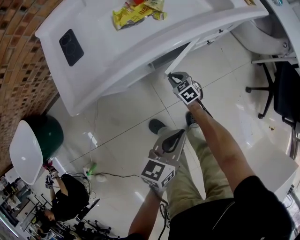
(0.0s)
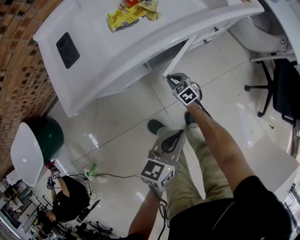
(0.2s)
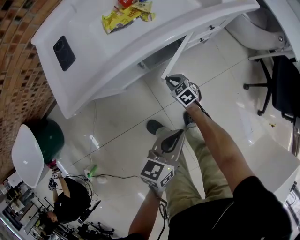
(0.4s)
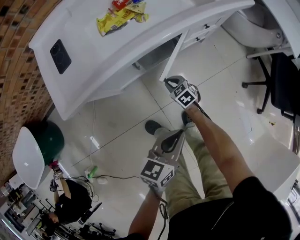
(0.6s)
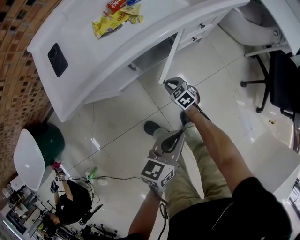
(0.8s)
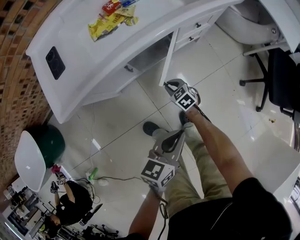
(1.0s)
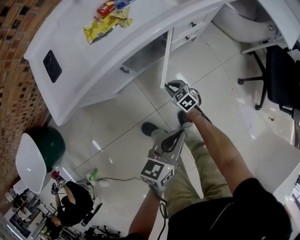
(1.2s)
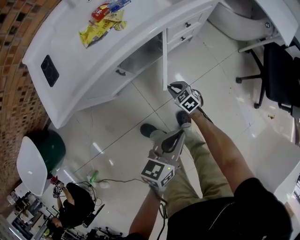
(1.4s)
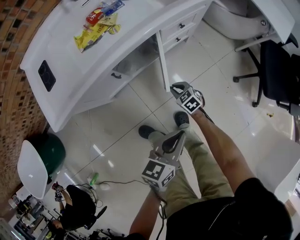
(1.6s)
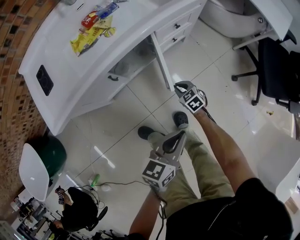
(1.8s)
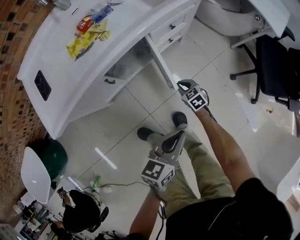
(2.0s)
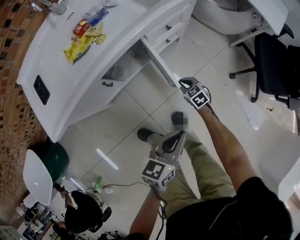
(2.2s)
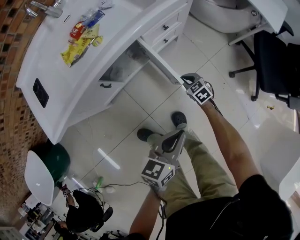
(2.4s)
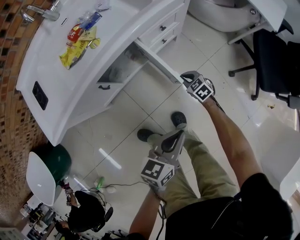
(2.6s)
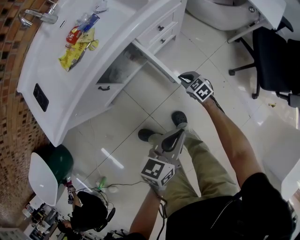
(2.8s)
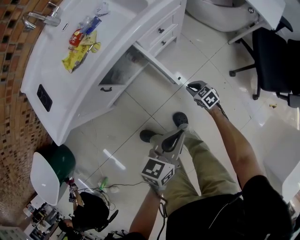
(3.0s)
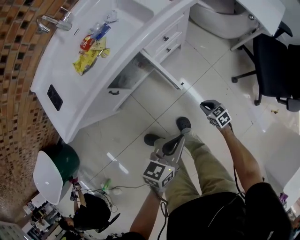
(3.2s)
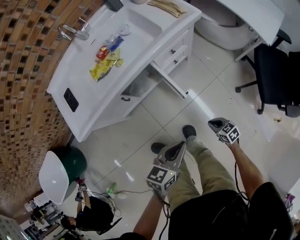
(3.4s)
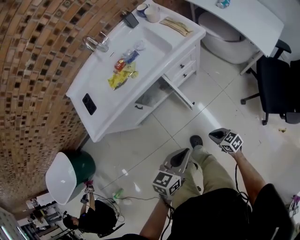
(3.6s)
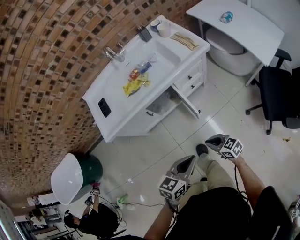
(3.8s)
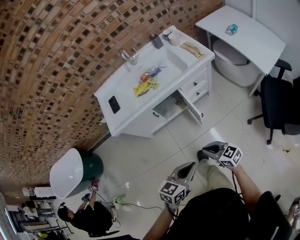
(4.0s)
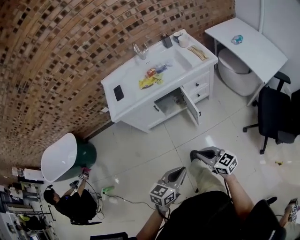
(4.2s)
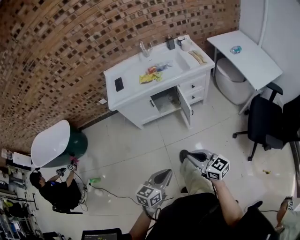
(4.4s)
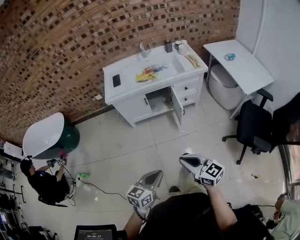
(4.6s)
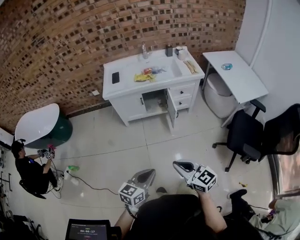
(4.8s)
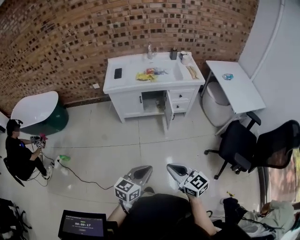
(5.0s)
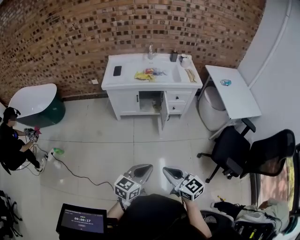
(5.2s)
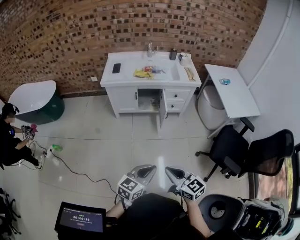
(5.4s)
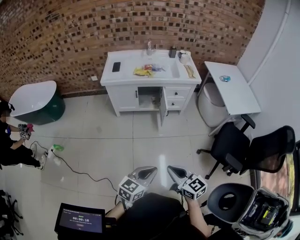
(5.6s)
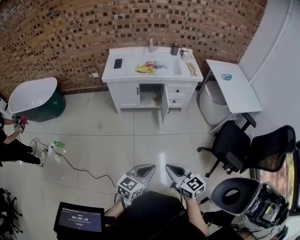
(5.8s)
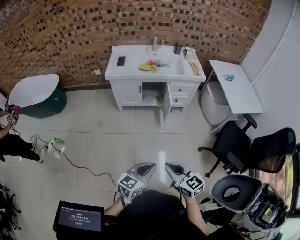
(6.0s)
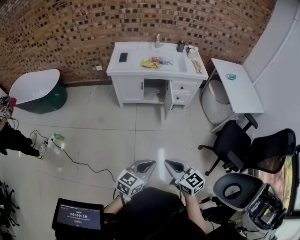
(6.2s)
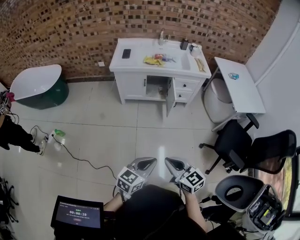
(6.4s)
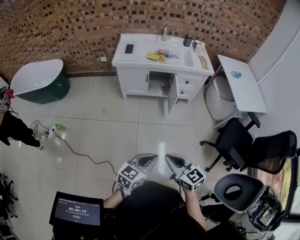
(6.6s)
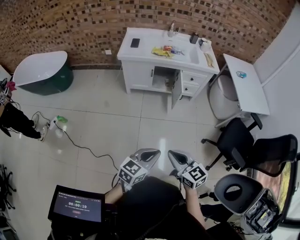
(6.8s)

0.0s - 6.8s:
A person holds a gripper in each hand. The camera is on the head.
0.0s - 1.4s: The right gripper heads to the right and backward, covering some 15 cm. The left gripper is displaced to the right by some 10 cm.
1.4s - 2.8s: The left gripper is displaced to the right by roughly 10 cm. Meanwhile the right gripper moves to the right, about 15 cm.
2.8s - 4.0s: The right gripper goes about 40 cm upward and backward, and swivels some 30 degrees. The left gripper travels upward and backward by about 25 cm.
4.0s - 5.4s: The left gripper heads backward, covering roughly 30 cm. The right gripper is displaced backward and upward by some 40 cm.
5.4s - 6.8s: Both grippers move to the left, approximately 5 cm.

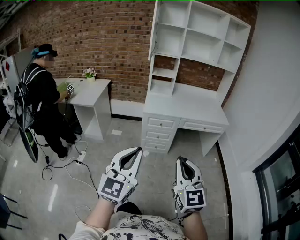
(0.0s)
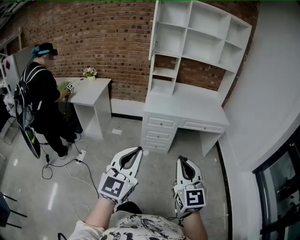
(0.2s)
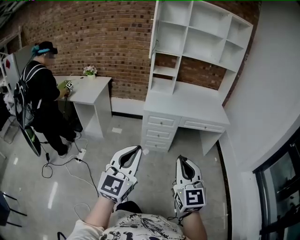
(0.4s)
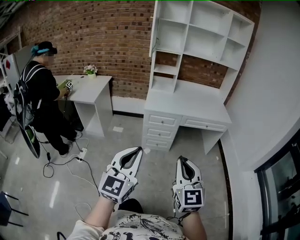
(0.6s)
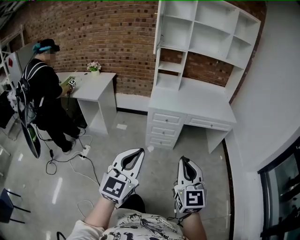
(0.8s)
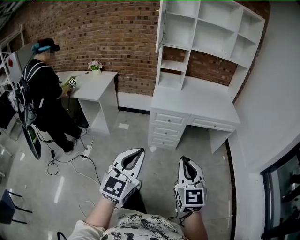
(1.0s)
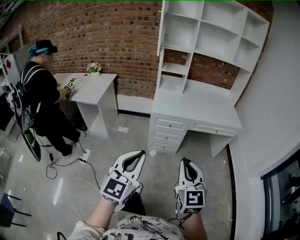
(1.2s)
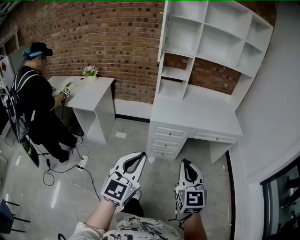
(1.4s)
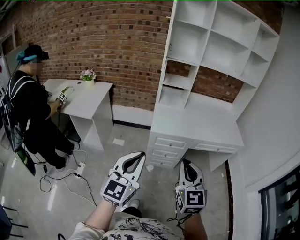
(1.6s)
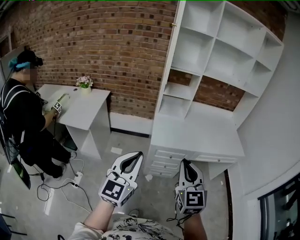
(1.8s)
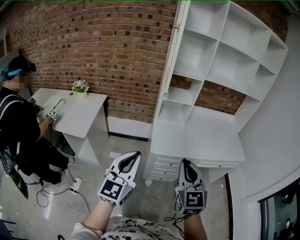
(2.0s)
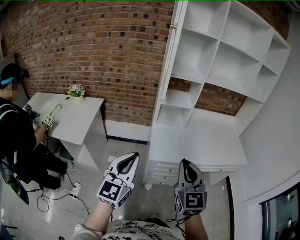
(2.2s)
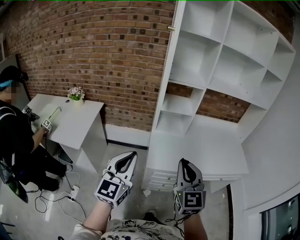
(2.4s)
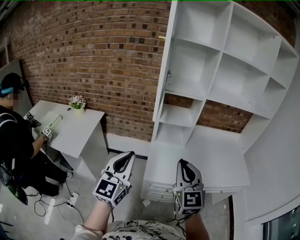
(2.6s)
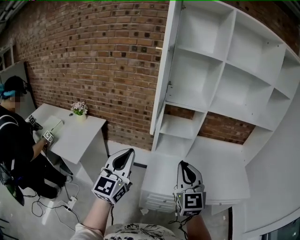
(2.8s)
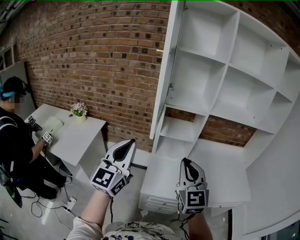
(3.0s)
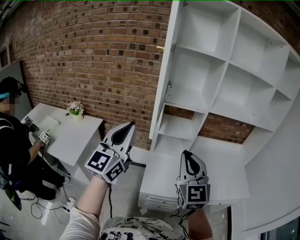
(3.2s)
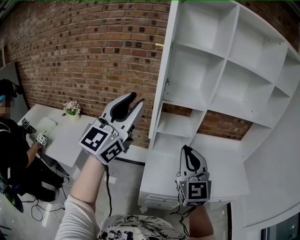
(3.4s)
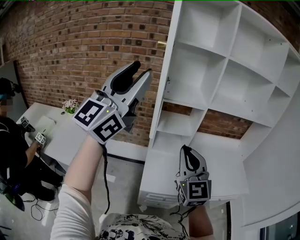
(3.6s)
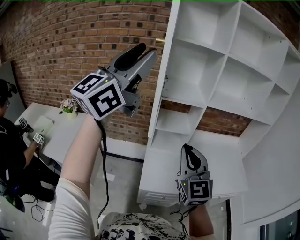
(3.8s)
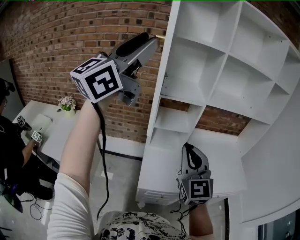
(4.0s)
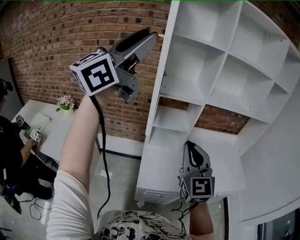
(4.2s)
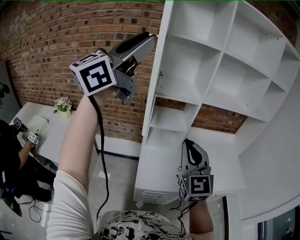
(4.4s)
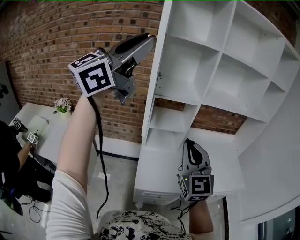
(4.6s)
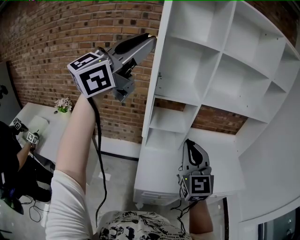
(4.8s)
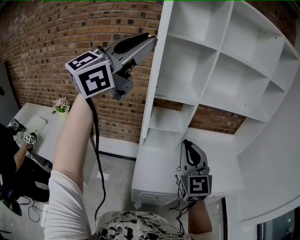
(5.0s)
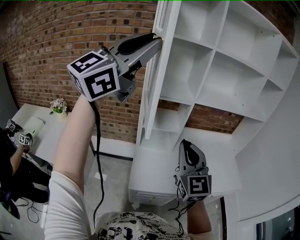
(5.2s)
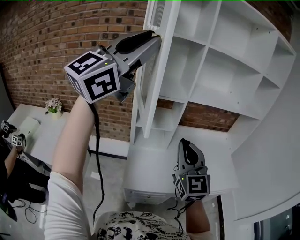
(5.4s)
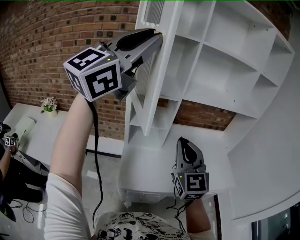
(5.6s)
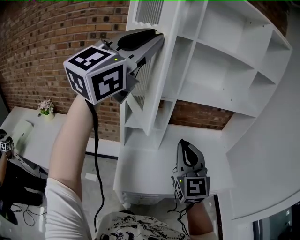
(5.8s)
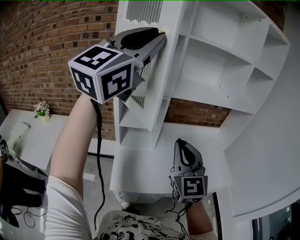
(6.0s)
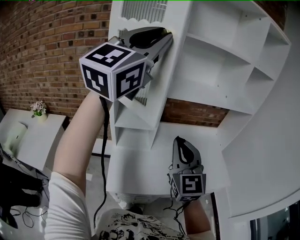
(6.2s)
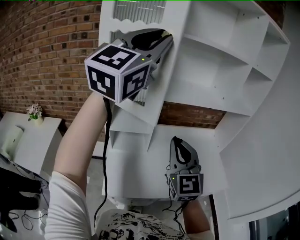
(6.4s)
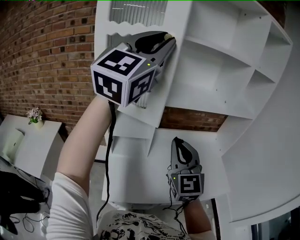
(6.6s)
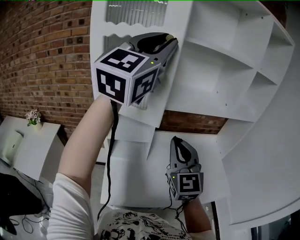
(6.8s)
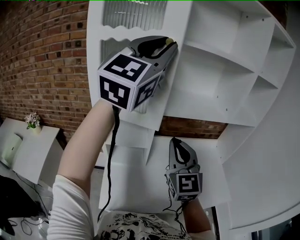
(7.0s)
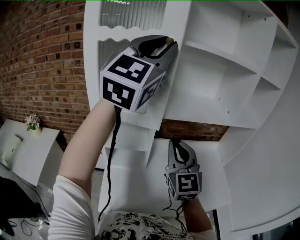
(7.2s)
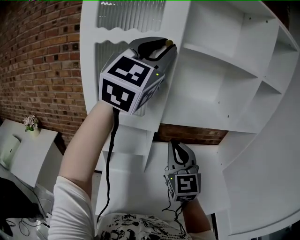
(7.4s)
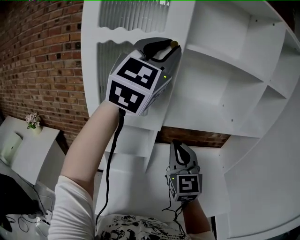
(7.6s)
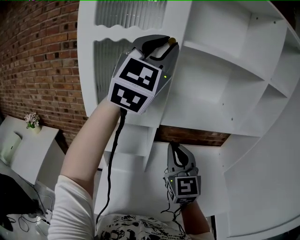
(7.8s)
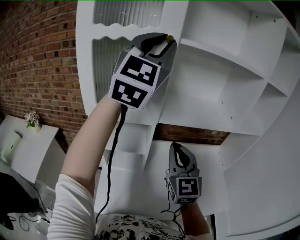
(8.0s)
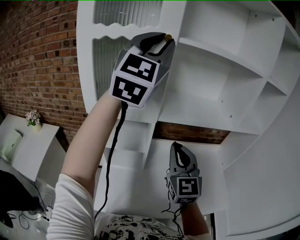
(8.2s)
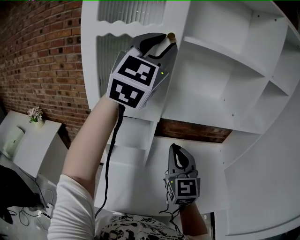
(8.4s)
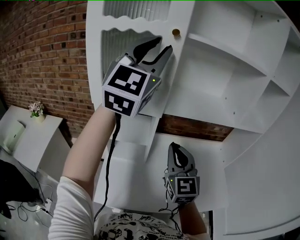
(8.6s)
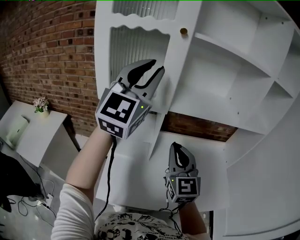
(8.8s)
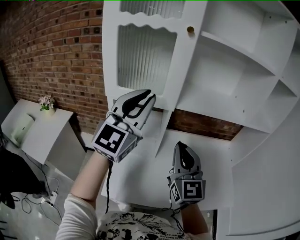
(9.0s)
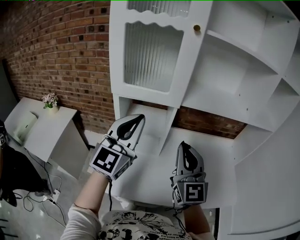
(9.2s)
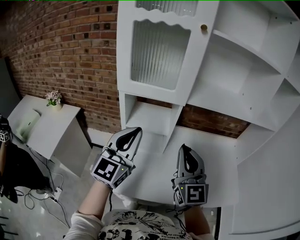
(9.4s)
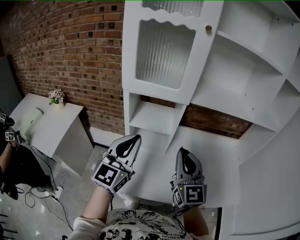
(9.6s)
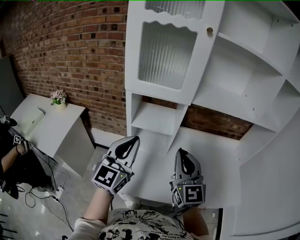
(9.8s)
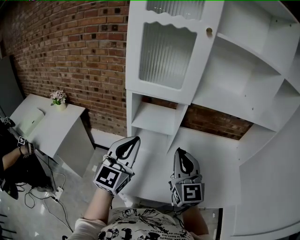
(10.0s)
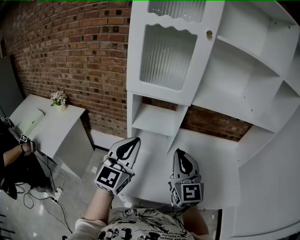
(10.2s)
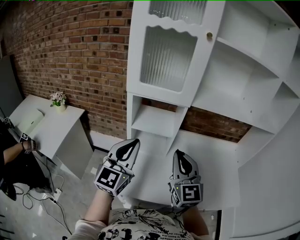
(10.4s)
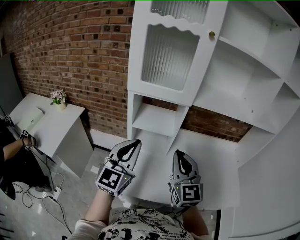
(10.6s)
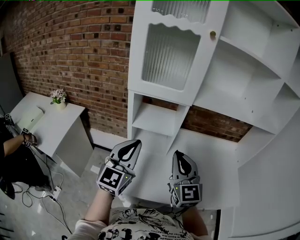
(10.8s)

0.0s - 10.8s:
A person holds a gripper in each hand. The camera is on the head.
0.0s - 1.6s: The grippers both shift forward by some 30 cm.
1.6s - 3.0s: Both grippers are carried forward, approximately 40 cm.
3.0s - 4.6s: The right gripper changes place by about 5 cm; the left gripper is displaced upward by approximately 25 cm, rotates roughly 40 degrees, and opens up.
4.6s - 6.2s: Both grippers travel together to the right and forward, roughly 20 cm. The left gripper rotates roughly 20 degrees.
6.2s - 7.8s: The grippers both shift forward by about 20 cm. The left gripper rotates about 20 degrees.
7.8s - 9.2s: The right gripper shifts about 10 cm backward. Meanwhile the left gripper travels downward and backward by about 30 cm, and changes its angle by approximately 20 degrees.
9.2s - 10.8s: The left gripper shifts roughly 15 cm downward, backward and to the left; the right gripper travels downward and to the left by approximately 10 cm.

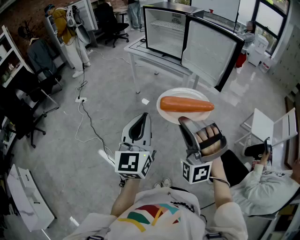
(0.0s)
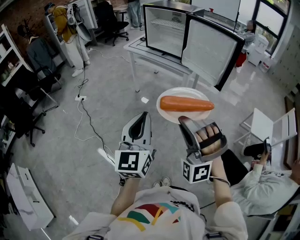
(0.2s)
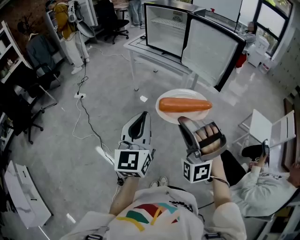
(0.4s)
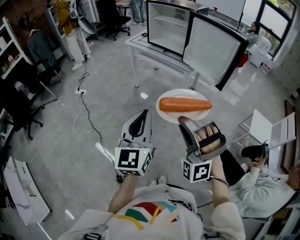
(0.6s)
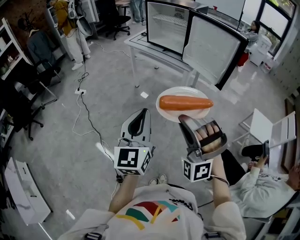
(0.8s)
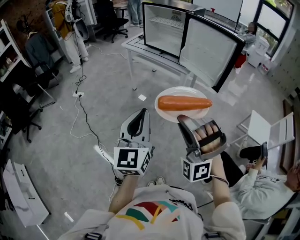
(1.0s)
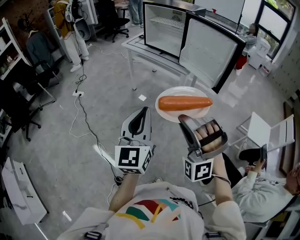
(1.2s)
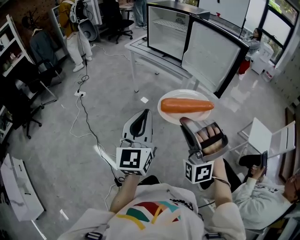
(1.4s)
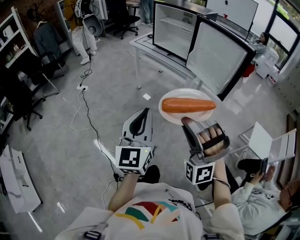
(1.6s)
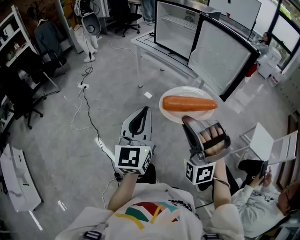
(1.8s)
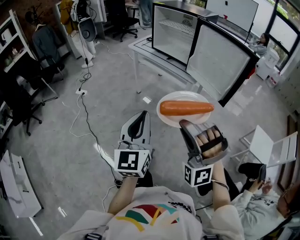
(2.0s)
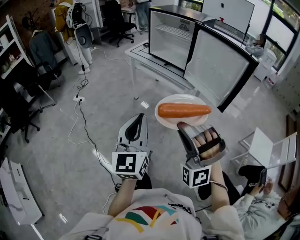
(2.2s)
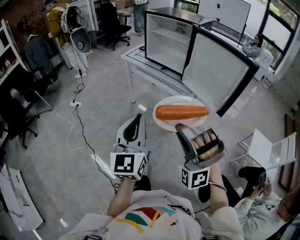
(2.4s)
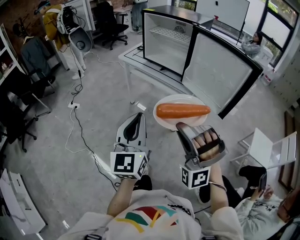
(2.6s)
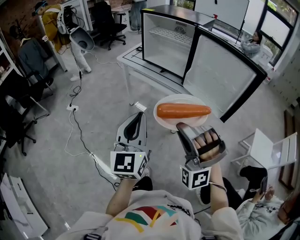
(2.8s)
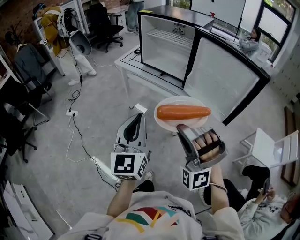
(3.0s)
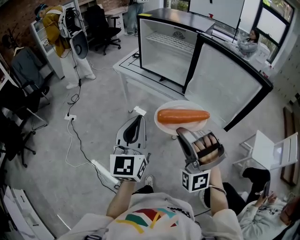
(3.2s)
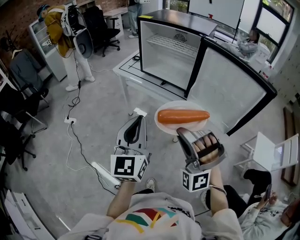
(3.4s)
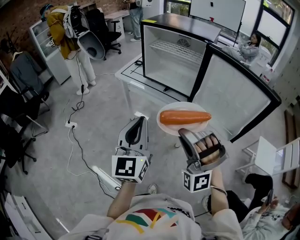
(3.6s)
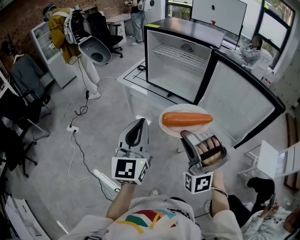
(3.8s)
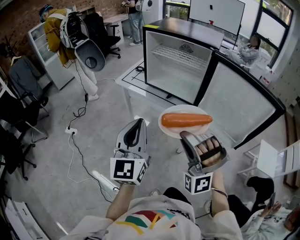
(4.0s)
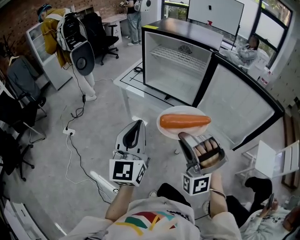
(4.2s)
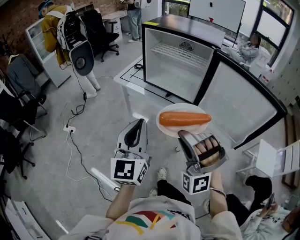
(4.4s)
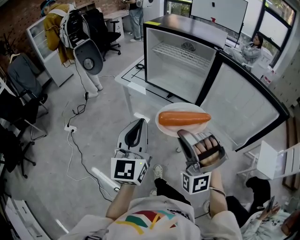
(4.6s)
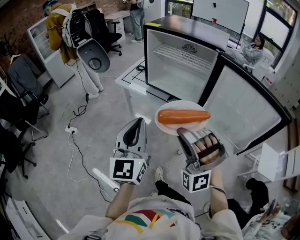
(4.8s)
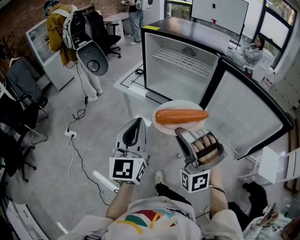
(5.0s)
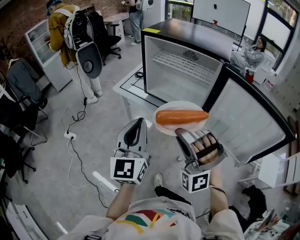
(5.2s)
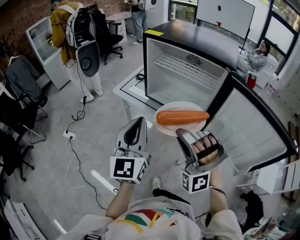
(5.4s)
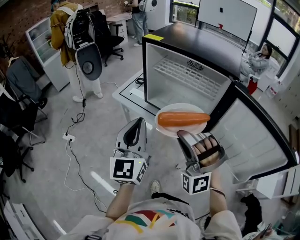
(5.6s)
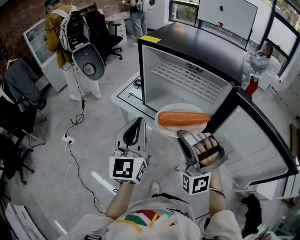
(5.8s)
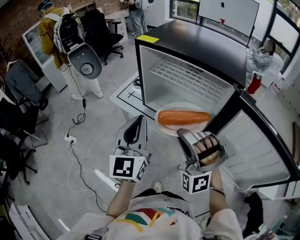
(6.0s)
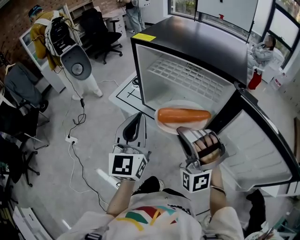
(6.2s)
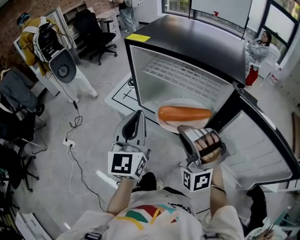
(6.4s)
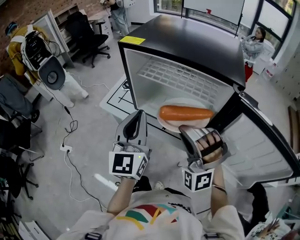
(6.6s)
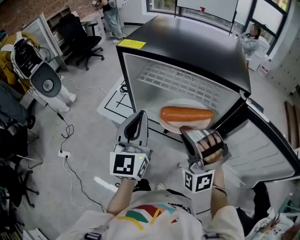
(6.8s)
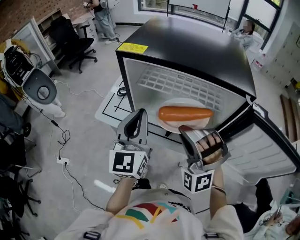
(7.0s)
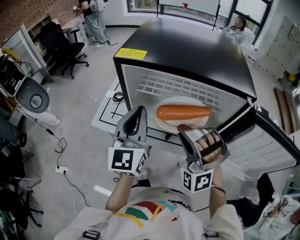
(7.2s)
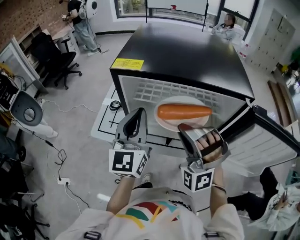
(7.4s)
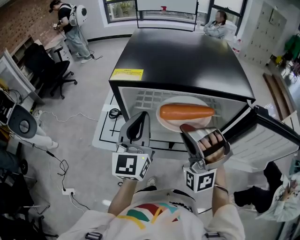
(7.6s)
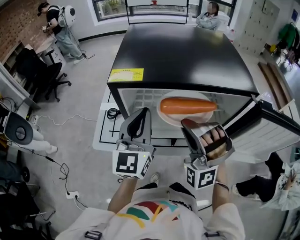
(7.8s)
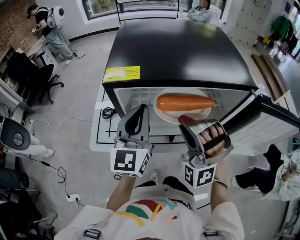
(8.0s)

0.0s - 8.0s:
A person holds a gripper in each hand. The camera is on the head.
0.0s - 1.6s: The left gripper shifts by some 5 cm.
1.6s - 3.2s: The left gripper changes place by roughly 30 cm.
3.2s - 4.8s: The left gripper changes place by roughly 15 cm.
4.8s - 6.4s: The left gripper shifts by about 25 cm.
6.4s - 8.0s: The left gripper shifts by about 20 cm, and turns by some 30 degrees.
